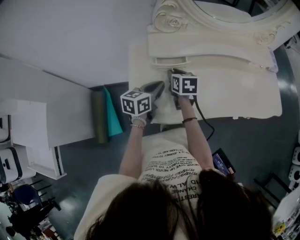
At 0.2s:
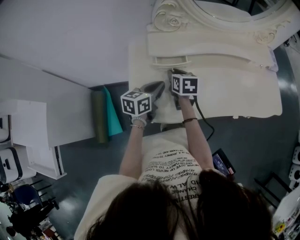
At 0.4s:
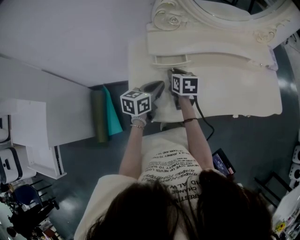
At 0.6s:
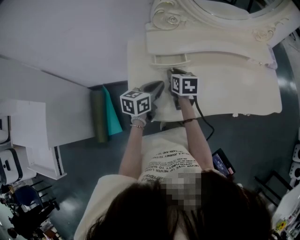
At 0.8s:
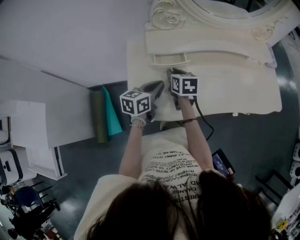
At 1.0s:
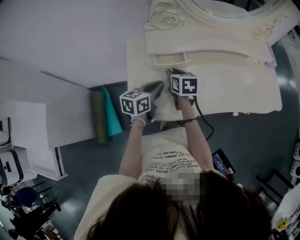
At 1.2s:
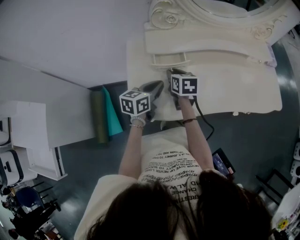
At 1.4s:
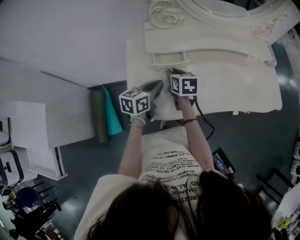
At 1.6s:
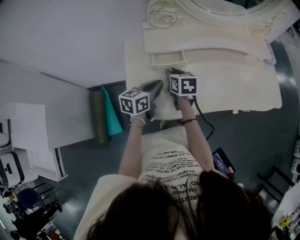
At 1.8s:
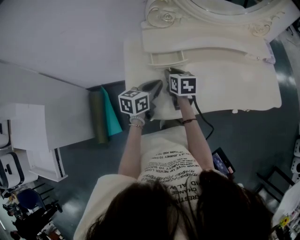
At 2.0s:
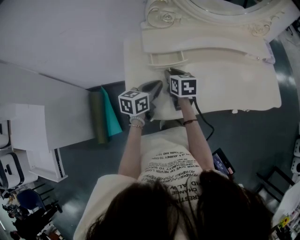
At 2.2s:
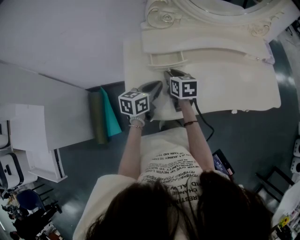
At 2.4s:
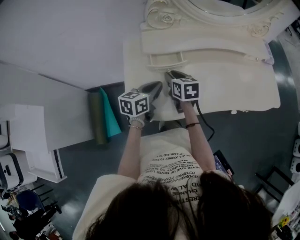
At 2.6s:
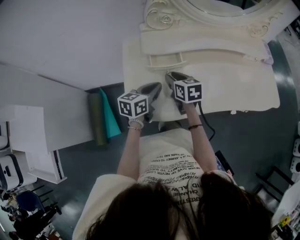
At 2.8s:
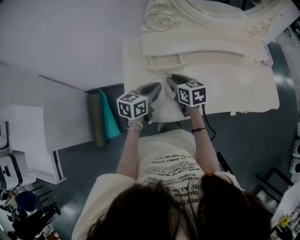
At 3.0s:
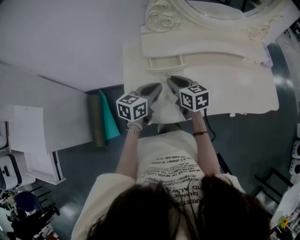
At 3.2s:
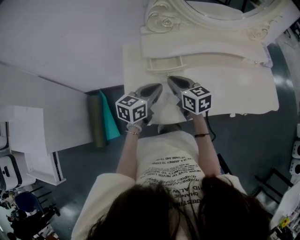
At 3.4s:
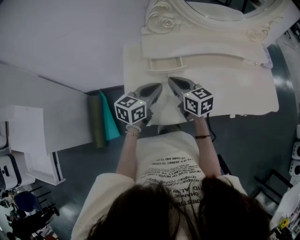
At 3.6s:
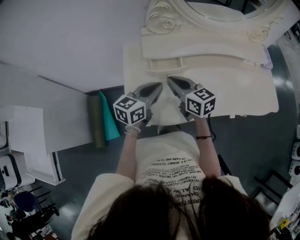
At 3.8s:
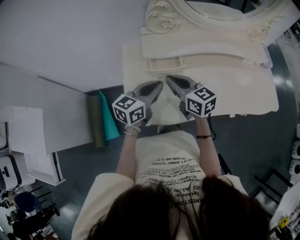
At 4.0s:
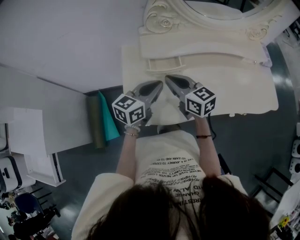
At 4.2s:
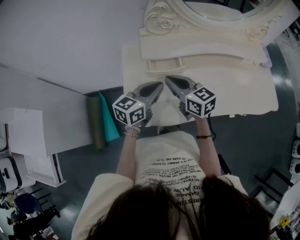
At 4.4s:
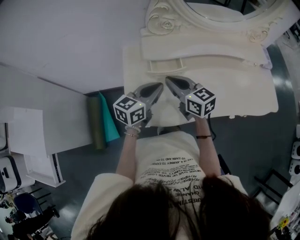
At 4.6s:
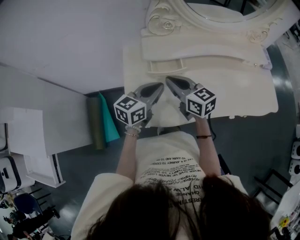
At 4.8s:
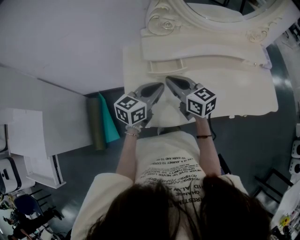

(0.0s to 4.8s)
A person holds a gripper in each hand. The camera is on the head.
0.0s - 1.6s: The grippers make only small movements.
1.6s - 3.2s: The right gripper heads upward, covering some 5 cm, and rotates about 20 degrees.
3.2s - 4.8s: There are only small adjustments of the grippers.

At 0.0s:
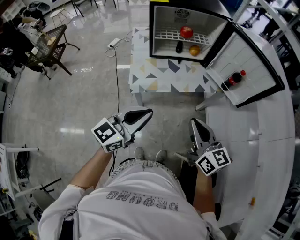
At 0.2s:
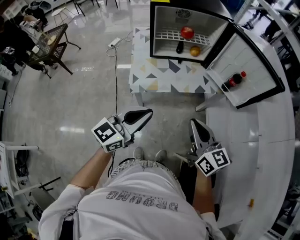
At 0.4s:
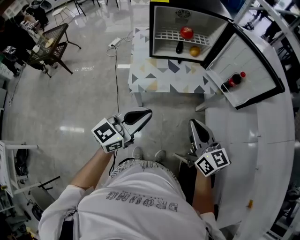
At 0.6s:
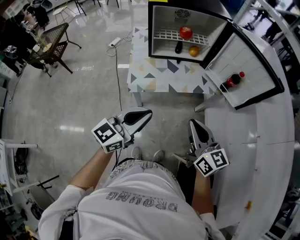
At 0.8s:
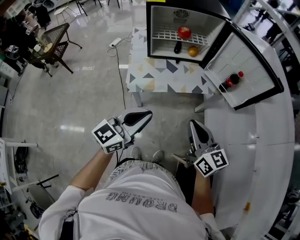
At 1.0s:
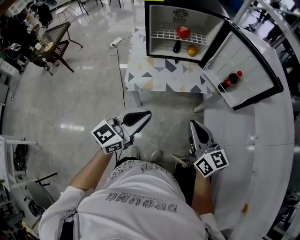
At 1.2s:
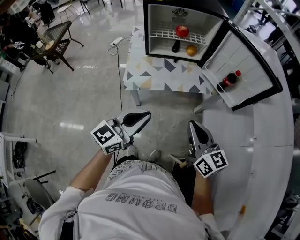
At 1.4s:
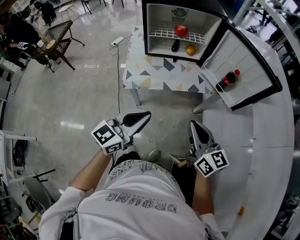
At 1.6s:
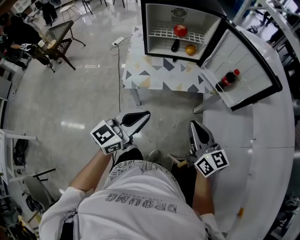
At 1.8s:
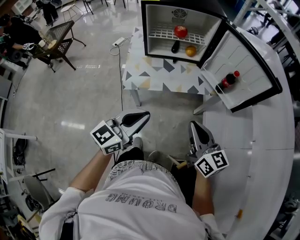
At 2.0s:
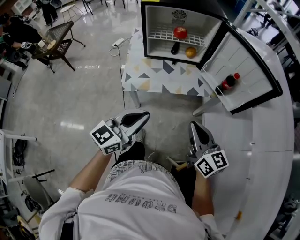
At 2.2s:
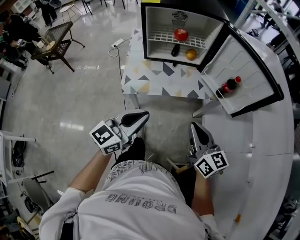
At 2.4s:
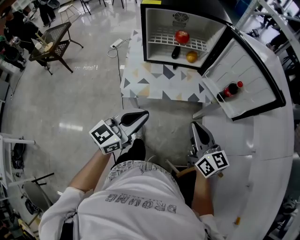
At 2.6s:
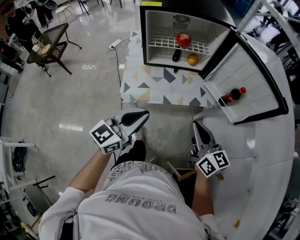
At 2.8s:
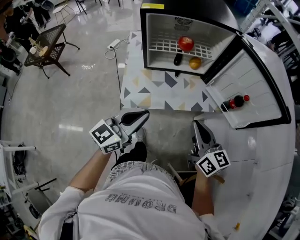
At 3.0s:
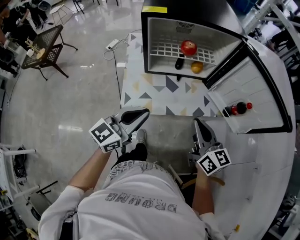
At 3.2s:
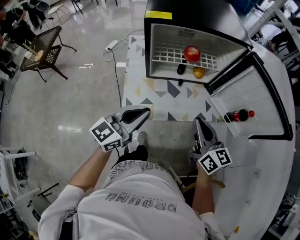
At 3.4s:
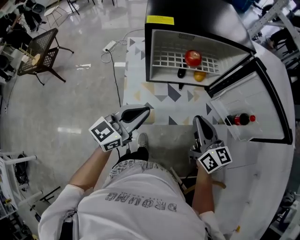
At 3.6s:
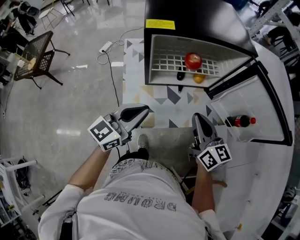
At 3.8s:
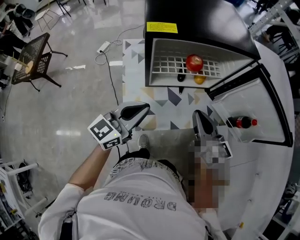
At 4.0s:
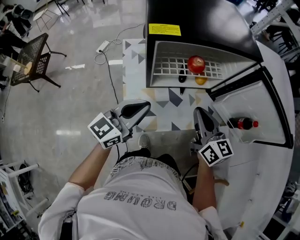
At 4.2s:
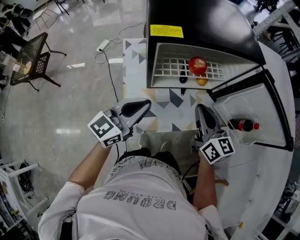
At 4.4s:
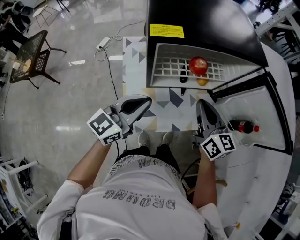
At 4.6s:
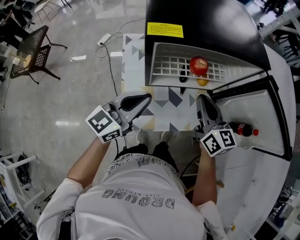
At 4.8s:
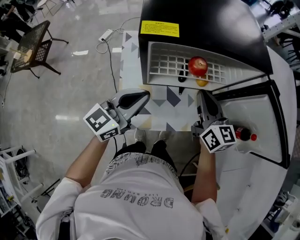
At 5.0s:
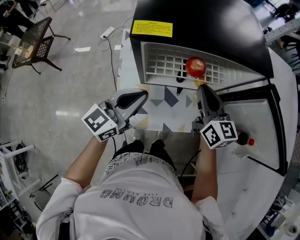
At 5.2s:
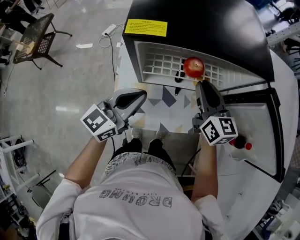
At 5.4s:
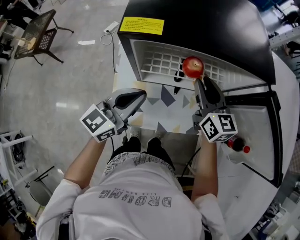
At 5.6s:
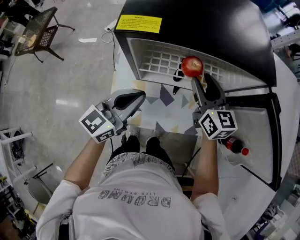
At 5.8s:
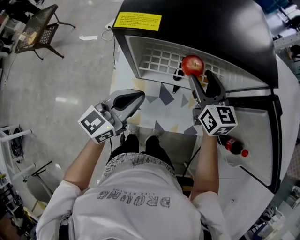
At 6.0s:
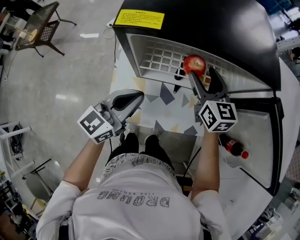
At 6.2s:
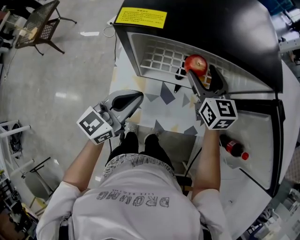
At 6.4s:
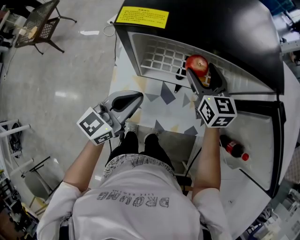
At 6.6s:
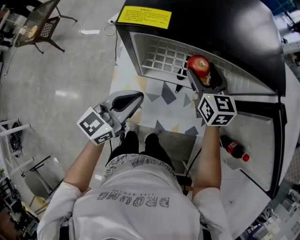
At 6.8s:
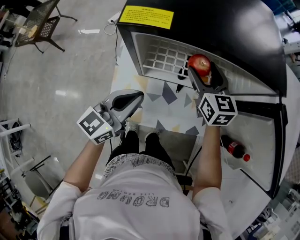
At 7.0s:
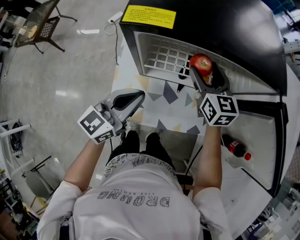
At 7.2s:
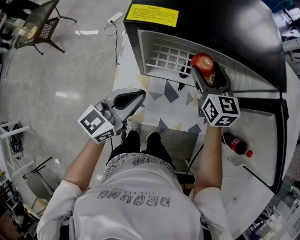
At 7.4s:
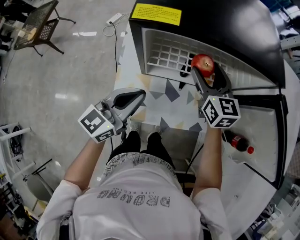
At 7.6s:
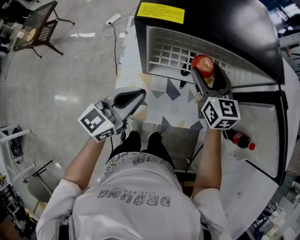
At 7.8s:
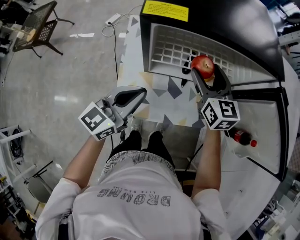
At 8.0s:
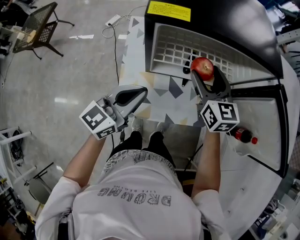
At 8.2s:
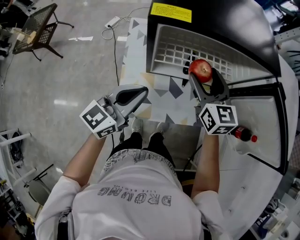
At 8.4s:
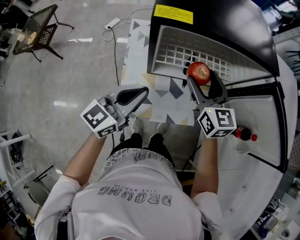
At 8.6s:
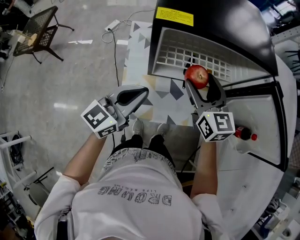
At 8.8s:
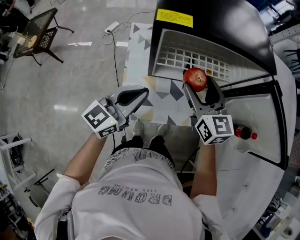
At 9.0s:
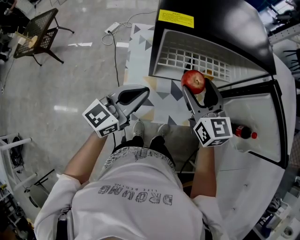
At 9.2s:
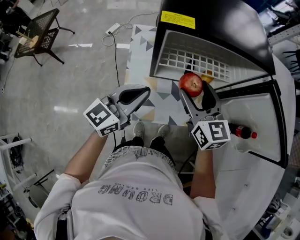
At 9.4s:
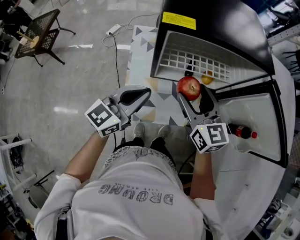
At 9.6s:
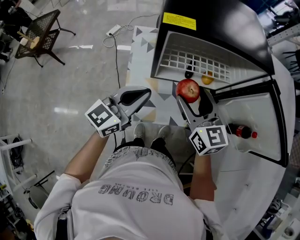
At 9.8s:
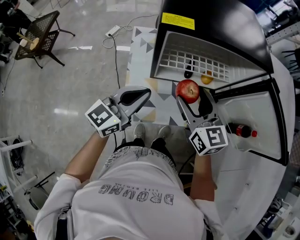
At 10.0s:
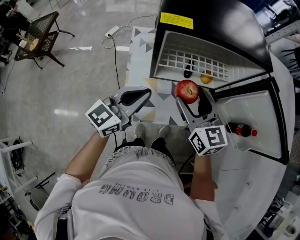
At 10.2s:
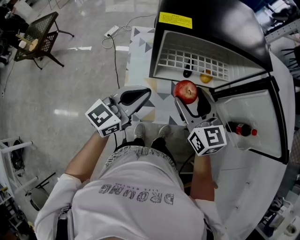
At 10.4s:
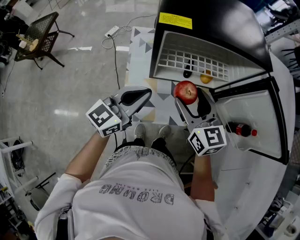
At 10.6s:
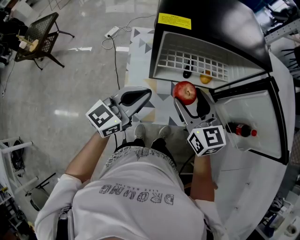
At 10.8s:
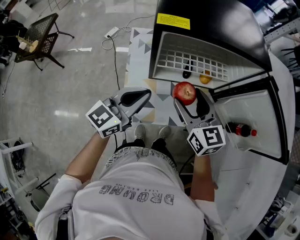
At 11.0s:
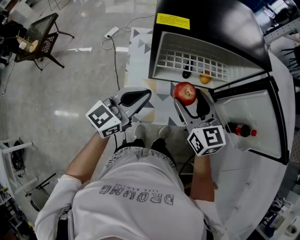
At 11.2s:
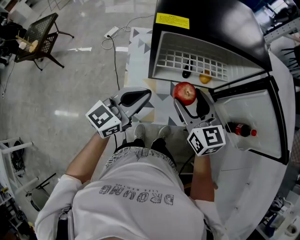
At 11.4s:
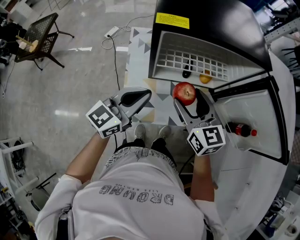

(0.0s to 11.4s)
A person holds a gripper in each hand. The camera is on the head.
0.0s - 1.4s: Both grippers travel together to the right, approximately 10 cm.
1.4s - 2.8s: The right gripper heads forward, covering approximately 15 cm. Meanwhile the left gripper shifts about 15 cm forward and to the left.
2.8s - 4.2s: The grippers both shift forward and to the left by approximately 20 cm.
4.2s - 5.6s: The right gripper goes about 15 cm forward, and opens its fingers. The left gripper moves forward and to the right, about 10 cm.
5.6s - 7.2s: The right gripper opens.
7.2s - 8.6s: The left gripper moves roughly 5 cm, while the right gripper travels backward by about 10 cm.
8.6s - 10.0s: The right gripper shifts some 5 cm backward.
10.0s - 11.4s: Neither gripper changes place.

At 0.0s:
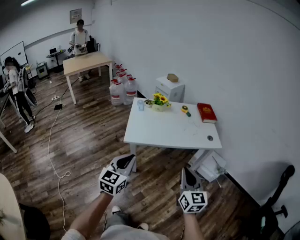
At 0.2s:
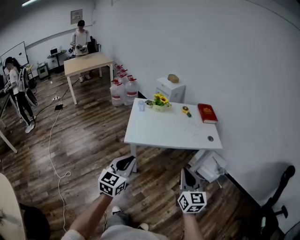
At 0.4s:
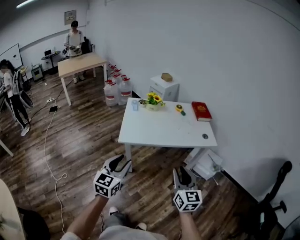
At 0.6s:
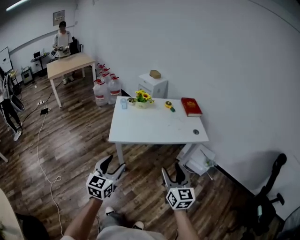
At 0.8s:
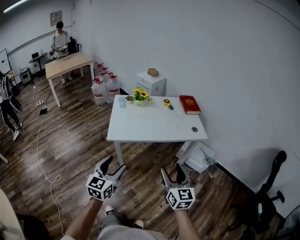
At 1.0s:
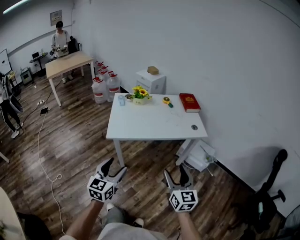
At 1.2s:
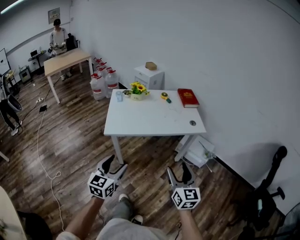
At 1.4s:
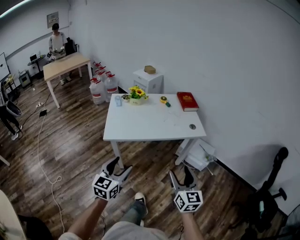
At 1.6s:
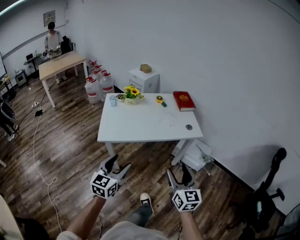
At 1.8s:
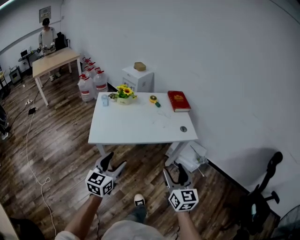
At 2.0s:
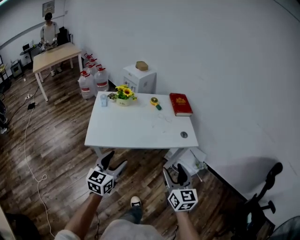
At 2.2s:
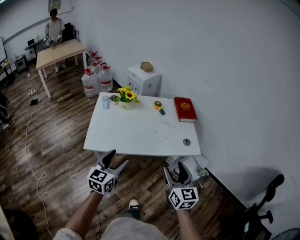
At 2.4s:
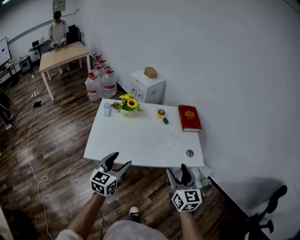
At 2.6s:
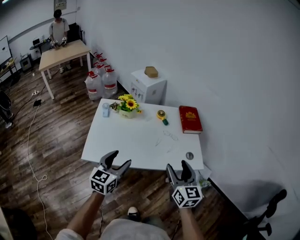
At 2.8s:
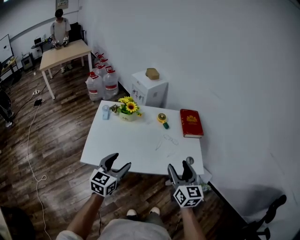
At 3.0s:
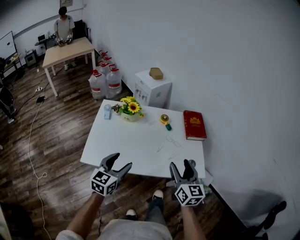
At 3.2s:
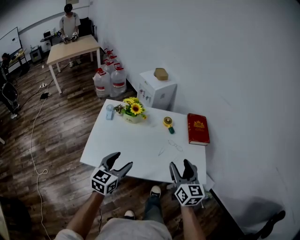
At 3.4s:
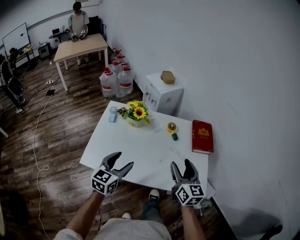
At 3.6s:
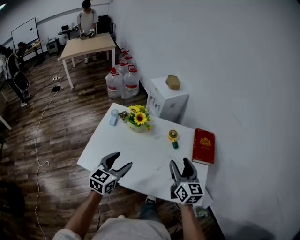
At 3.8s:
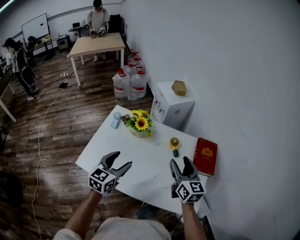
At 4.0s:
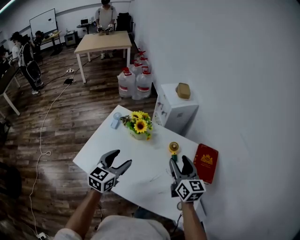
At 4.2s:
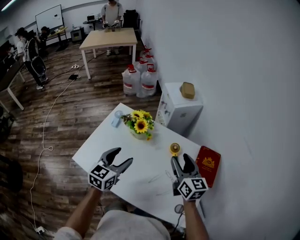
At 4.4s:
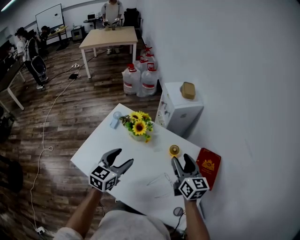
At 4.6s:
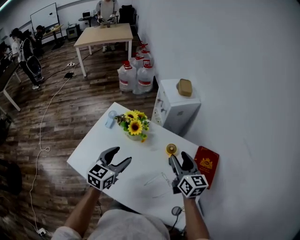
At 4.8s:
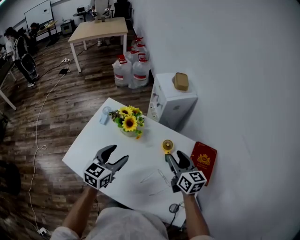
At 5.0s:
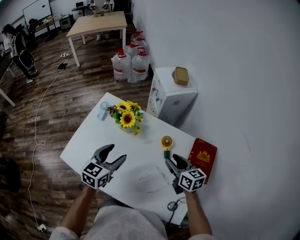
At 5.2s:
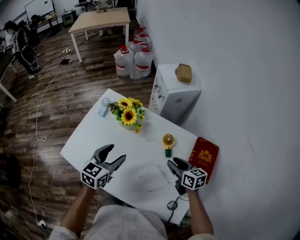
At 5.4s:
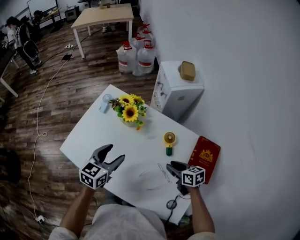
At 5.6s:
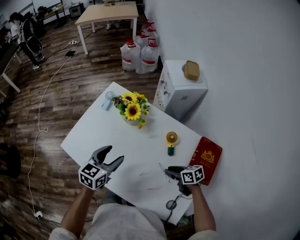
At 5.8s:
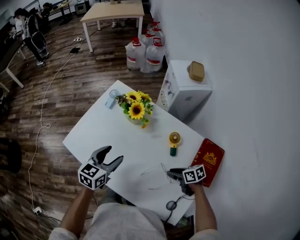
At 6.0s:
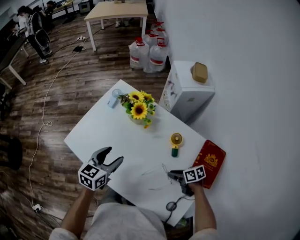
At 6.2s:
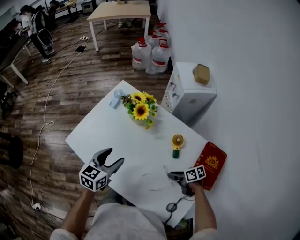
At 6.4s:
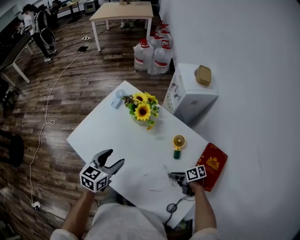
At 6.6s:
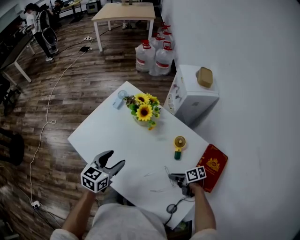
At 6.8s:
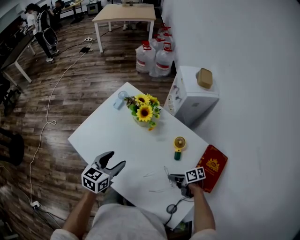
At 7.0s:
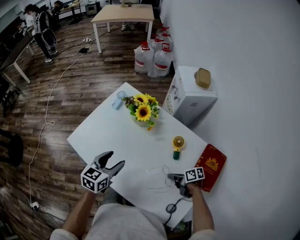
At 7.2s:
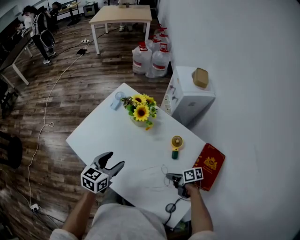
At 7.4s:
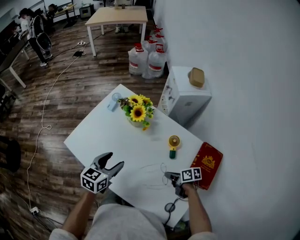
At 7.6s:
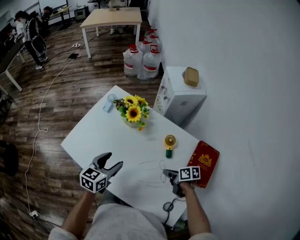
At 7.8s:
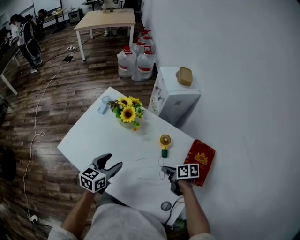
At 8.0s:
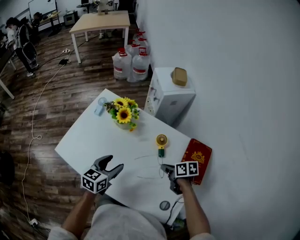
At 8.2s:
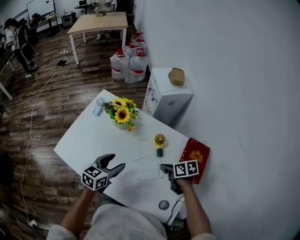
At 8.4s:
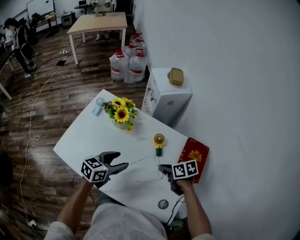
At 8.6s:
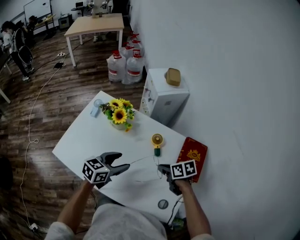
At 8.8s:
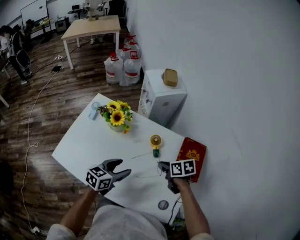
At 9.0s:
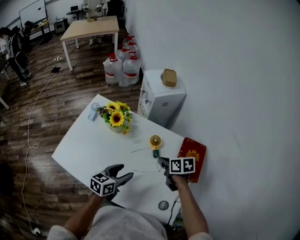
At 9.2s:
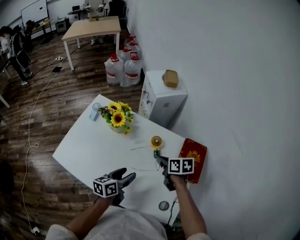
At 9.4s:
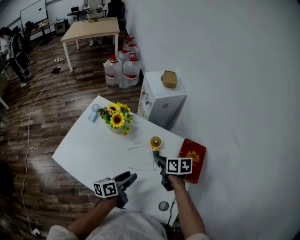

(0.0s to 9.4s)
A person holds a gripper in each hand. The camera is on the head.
0.0s - 1.6s: The right gripper travels to the right by approximately 15 cm, and opens up, while the left gripper goes approximately 15 cm to the right and downward, and opens up.
1.6s - 3.2s: Both grippers travel together forward, roughly 40 cm.
3.2s - 4.8s: The grippers both shift forward by about 30 cm. The right gripper turns by some 30 degrees.
4.8s - 6.2s: The right gripper shifts approximately 25 cm downward, and changes its angle by some 60 degrees. The left gripper travels downward by about 10 cm.
6.2s - 7.8s: The right gripper heads upward, covering approximately 5 cm.
7.8s - 9.4s: The right gripper heads upward, covering approximately 10 cm. The left gripper shifts approximately 10 cm to the right and backward, and rotates some 40 degrees.
